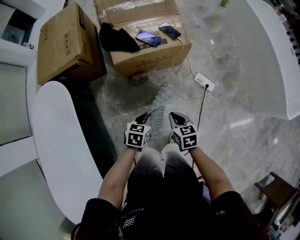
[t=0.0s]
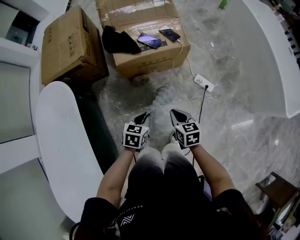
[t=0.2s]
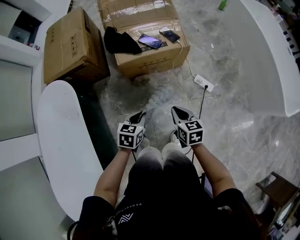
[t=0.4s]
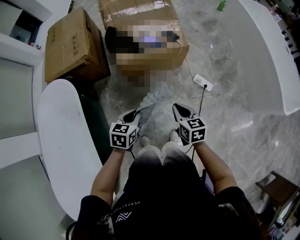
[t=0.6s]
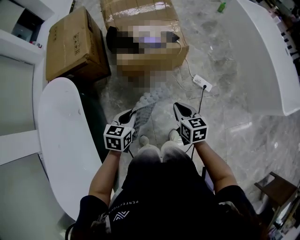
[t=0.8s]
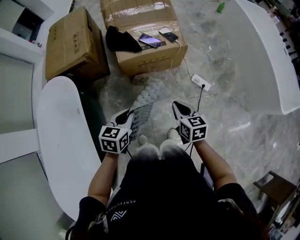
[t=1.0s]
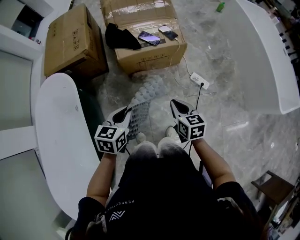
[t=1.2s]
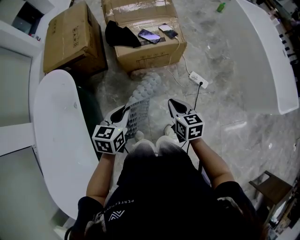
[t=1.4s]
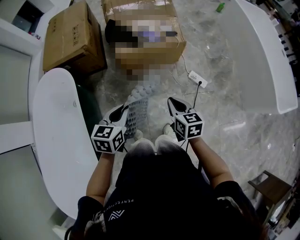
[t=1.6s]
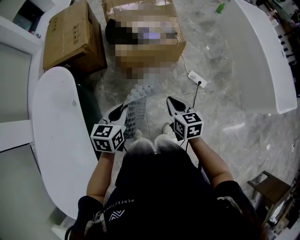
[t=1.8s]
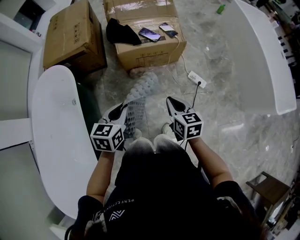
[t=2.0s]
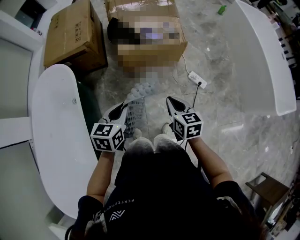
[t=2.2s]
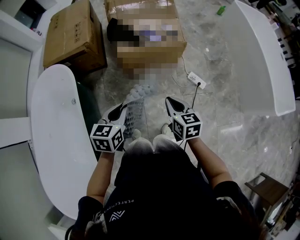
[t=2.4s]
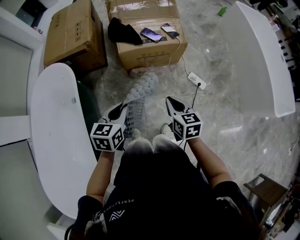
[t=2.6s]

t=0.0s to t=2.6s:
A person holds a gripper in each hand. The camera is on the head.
t=0.0s to t=1.2s: The two grippers go some 15 cm upward.
t=1.2s to t=2.6s: There are only small adjustments of the grippers.

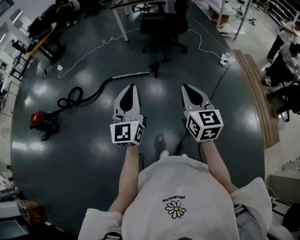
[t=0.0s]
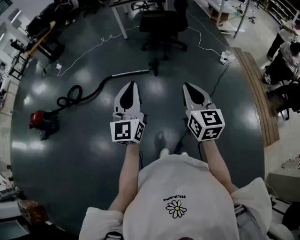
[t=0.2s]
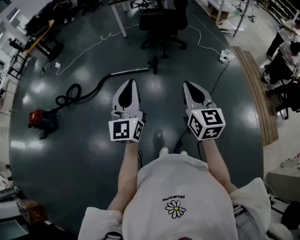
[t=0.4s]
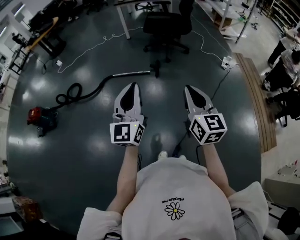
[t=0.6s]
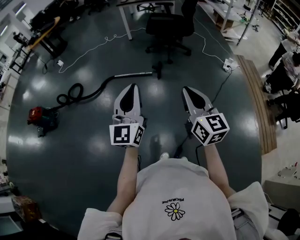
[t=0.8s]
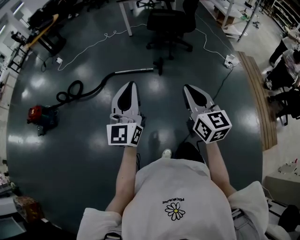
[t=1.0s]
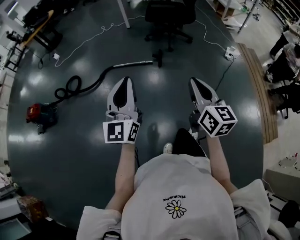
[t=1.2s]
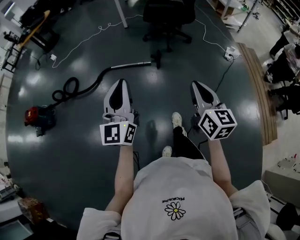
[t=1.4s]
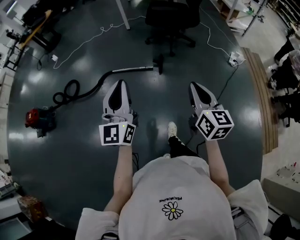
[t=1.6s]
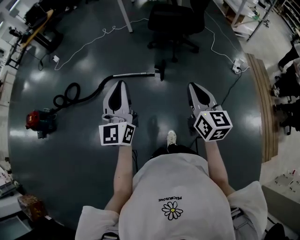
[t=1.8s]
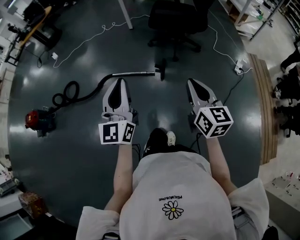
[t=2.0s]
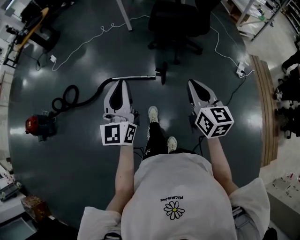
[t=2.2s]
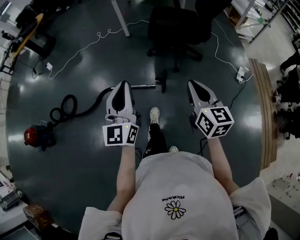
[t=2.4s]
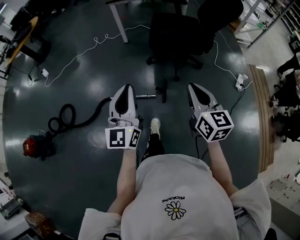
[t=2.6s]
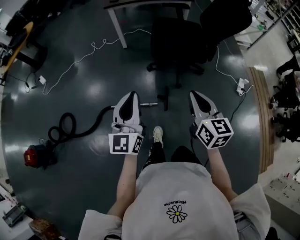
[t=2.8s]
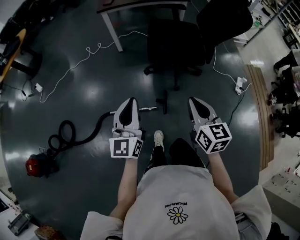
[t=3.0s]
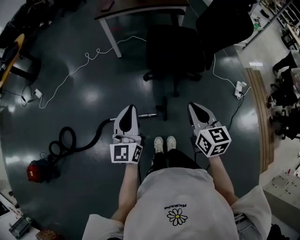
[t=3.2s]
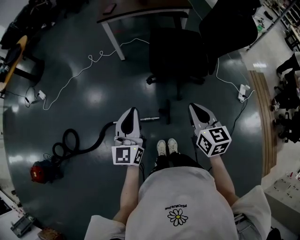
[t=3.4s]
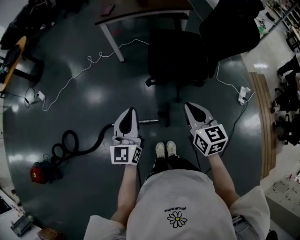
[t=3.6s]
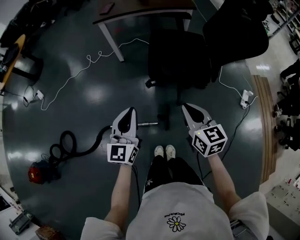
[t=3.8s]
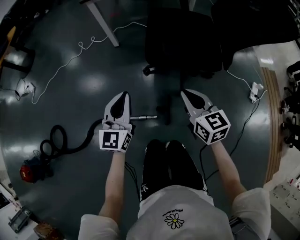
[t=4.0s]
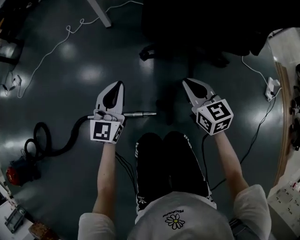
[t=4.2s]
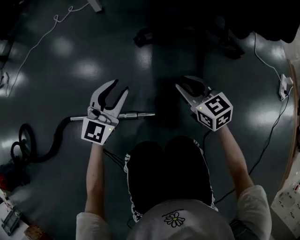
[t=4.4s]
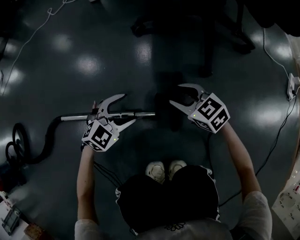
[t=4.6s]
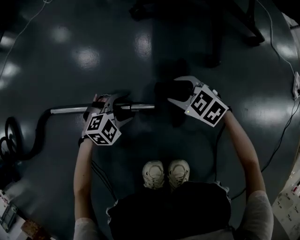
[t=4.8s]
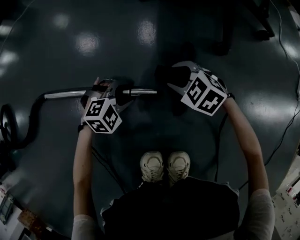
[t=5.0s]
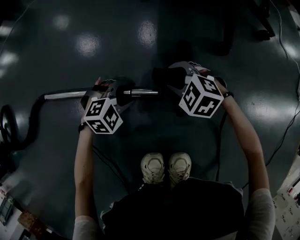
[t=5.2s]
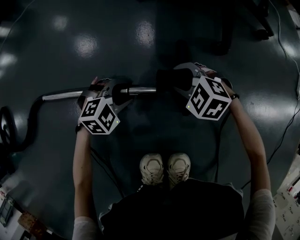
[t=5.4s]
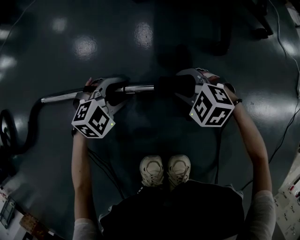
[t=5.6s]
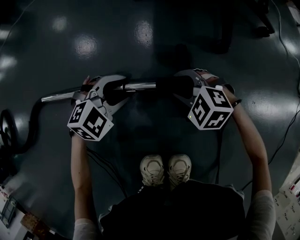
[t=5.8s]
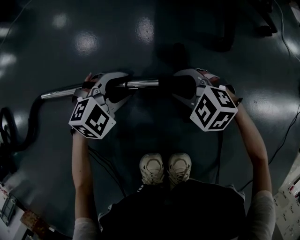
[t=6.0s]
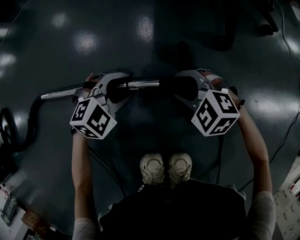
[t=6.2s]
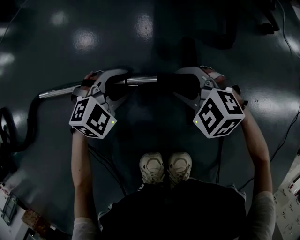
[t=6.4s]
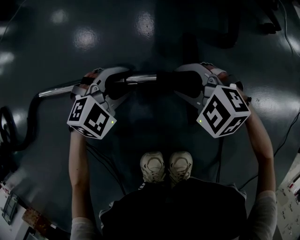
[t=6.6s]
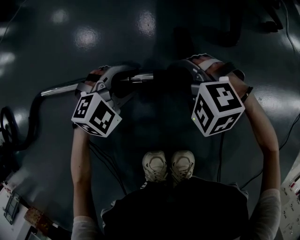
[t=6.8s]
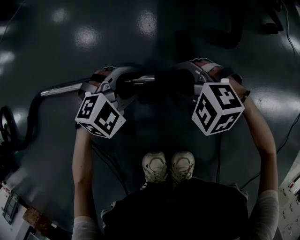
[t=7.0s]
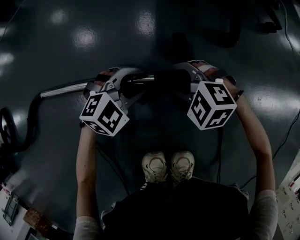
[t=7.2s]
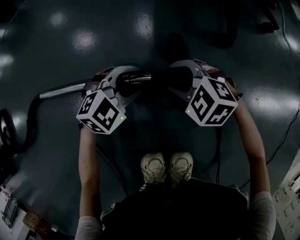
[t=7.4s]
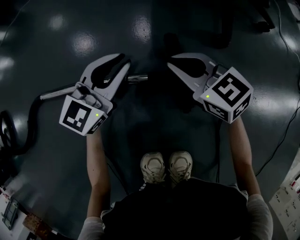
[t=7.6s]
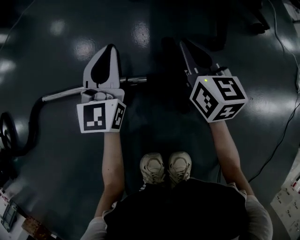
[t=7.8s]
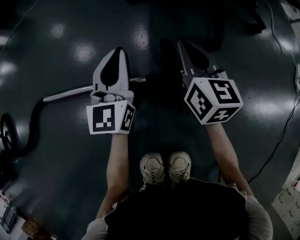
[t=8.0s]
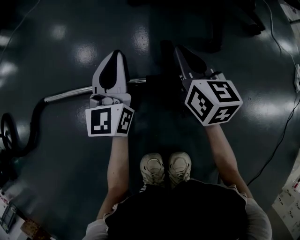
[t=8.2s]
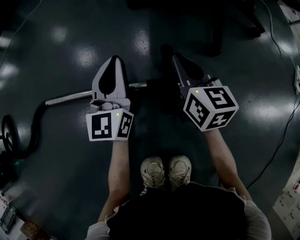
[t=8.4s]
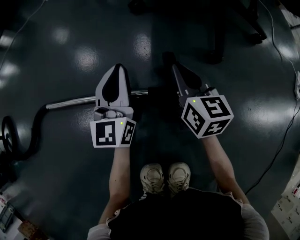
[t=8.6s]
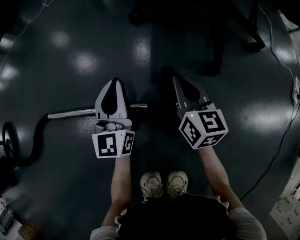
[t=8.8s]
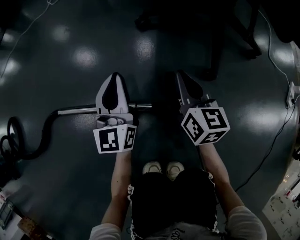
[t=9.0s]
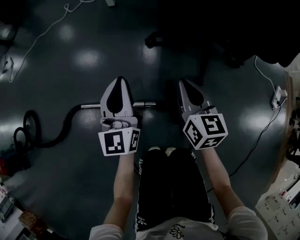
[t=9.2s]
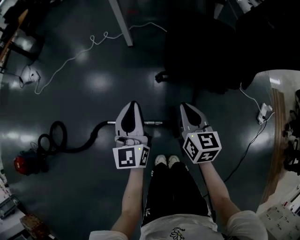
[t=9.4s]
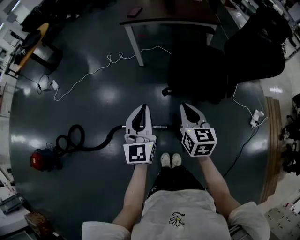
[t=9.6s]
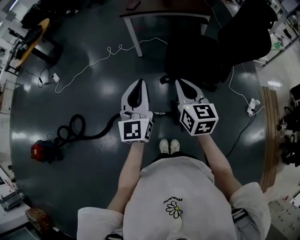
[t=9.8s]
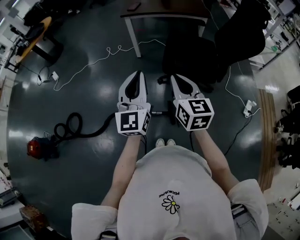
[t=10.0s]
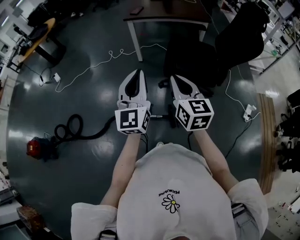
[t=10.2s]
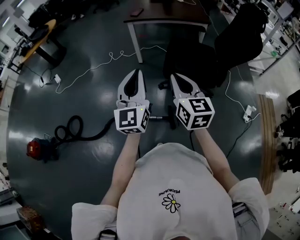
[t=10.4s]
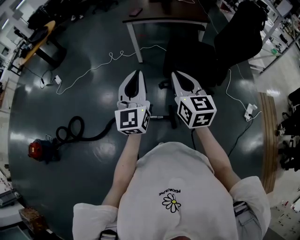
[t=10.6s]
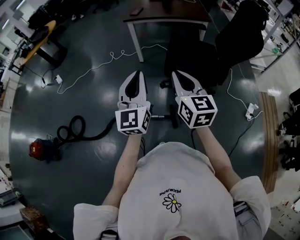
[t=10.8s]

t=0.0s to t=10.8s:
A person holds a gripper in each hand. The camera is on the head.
t=0.0s to t=1.6s: The left gripper moves forward and to the left, approximately 20 cm, while the right gripper shifts roughly 20 cm forward.
t=1.6s to t=3.0s: The pair of grippers is taken forward, some 60 cm.
t=3.0s to t=4.6s: The grippers both shift downward by roughly 80 cm. The left gripper tips its fingers downward by some 40 degrees, and opens its fingers. The right gripper swivels some 50 degrees, and opens.
t=4.6s to t=6.2s: Both grippers move downward, roughly 5 cm. The right gripper rotates approximately 40 degrees. Meanwhile the left gripper closes its fingers.
t=6.2s to t=7.8s: The right gripper changes place by approximately 15 cm, points its fingers roughly 40 degrees further upward, and closes, while the left gripper moves upward, some 15 cm, tips its fingers upward by about 50 degrees, and closes its fingers.
t=7.8s to t=9.2s: The grippers both shift upward by some 25 cm.
t=9.2s to t=10.8s: The two grippers go some 60 cm upward.

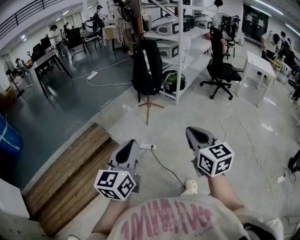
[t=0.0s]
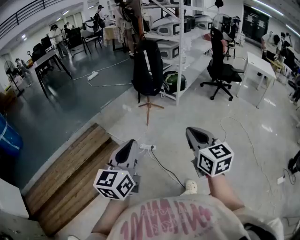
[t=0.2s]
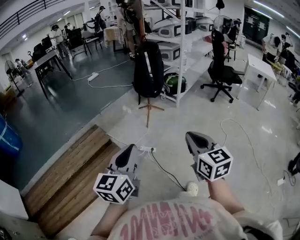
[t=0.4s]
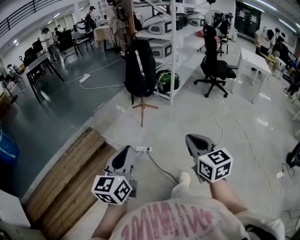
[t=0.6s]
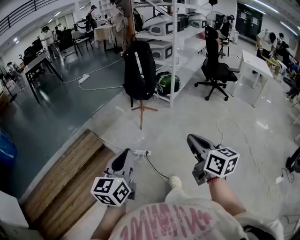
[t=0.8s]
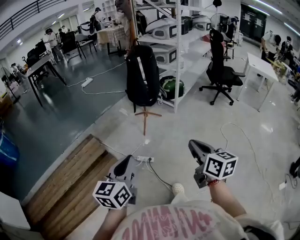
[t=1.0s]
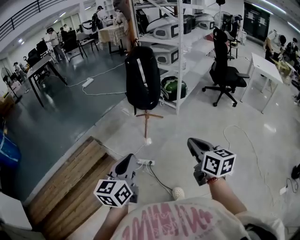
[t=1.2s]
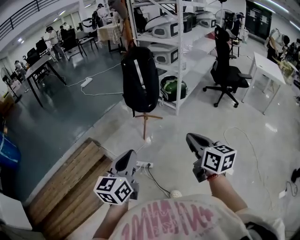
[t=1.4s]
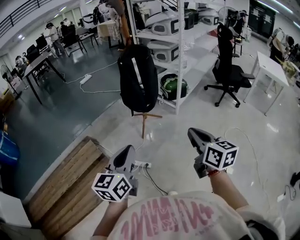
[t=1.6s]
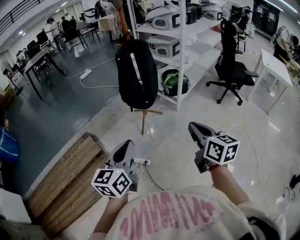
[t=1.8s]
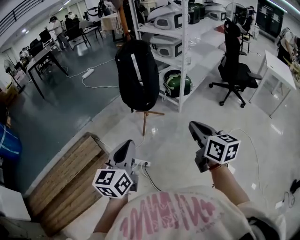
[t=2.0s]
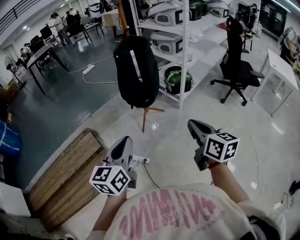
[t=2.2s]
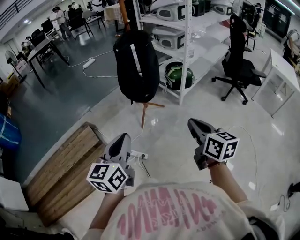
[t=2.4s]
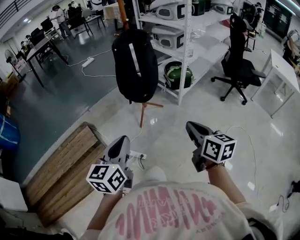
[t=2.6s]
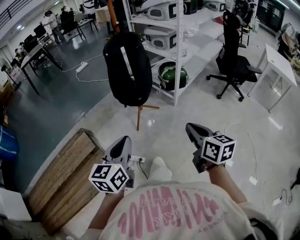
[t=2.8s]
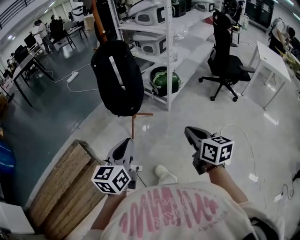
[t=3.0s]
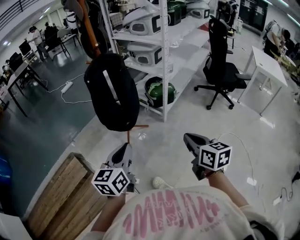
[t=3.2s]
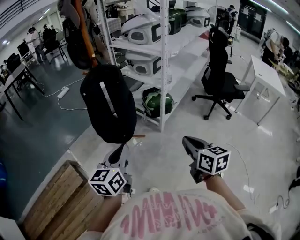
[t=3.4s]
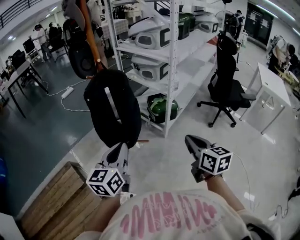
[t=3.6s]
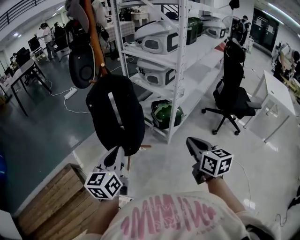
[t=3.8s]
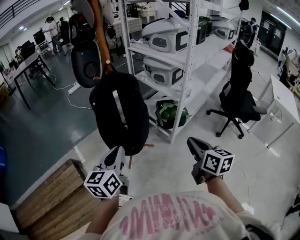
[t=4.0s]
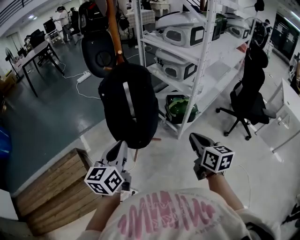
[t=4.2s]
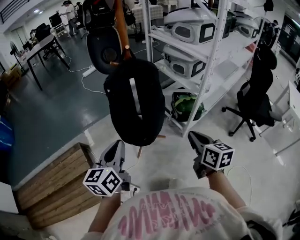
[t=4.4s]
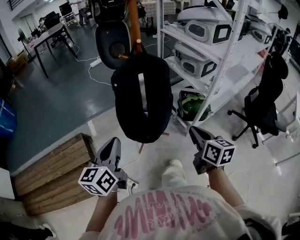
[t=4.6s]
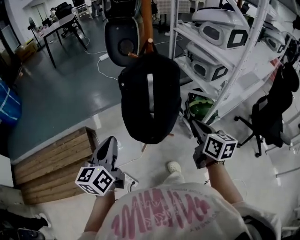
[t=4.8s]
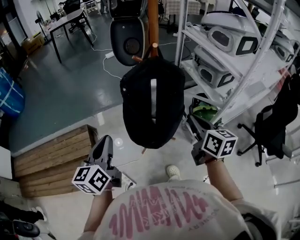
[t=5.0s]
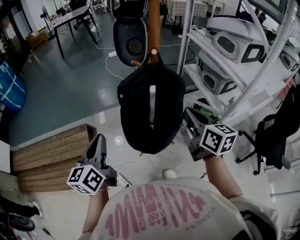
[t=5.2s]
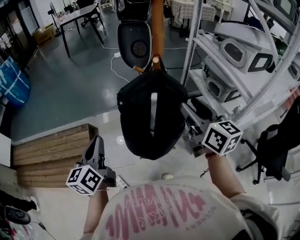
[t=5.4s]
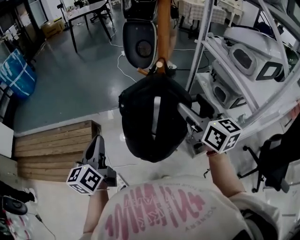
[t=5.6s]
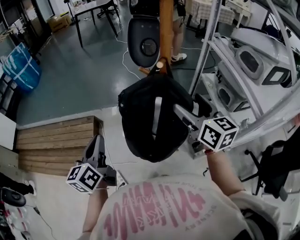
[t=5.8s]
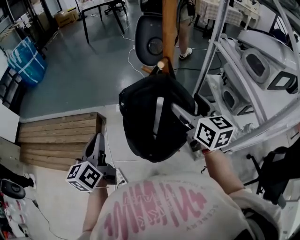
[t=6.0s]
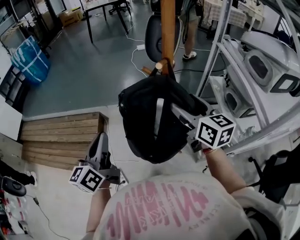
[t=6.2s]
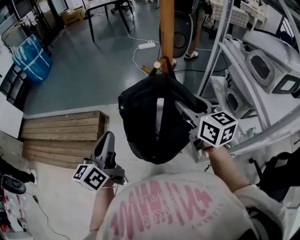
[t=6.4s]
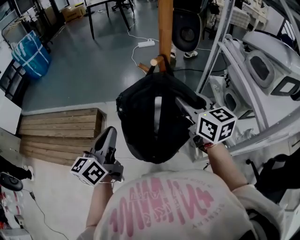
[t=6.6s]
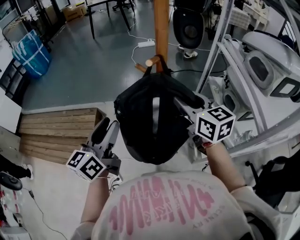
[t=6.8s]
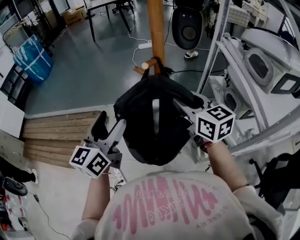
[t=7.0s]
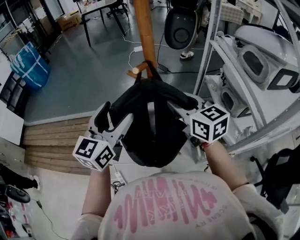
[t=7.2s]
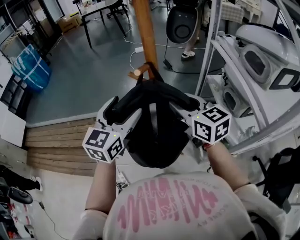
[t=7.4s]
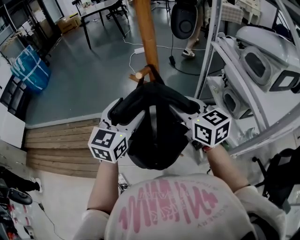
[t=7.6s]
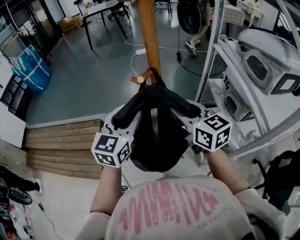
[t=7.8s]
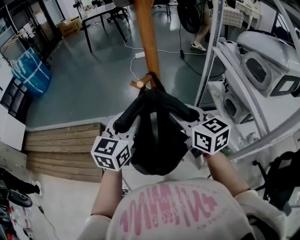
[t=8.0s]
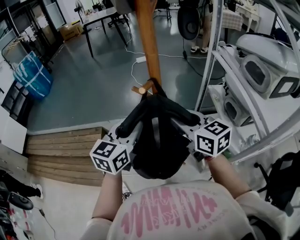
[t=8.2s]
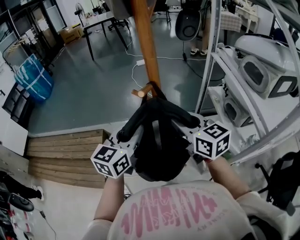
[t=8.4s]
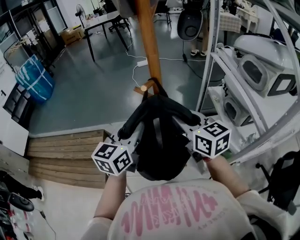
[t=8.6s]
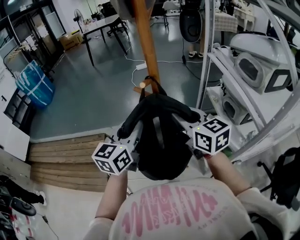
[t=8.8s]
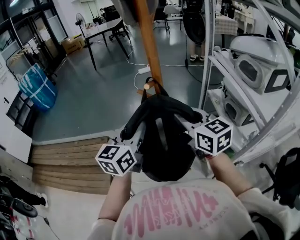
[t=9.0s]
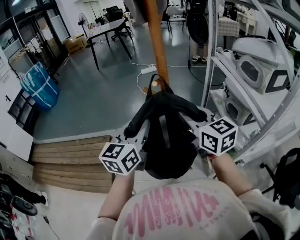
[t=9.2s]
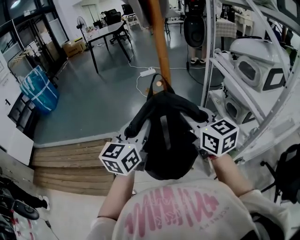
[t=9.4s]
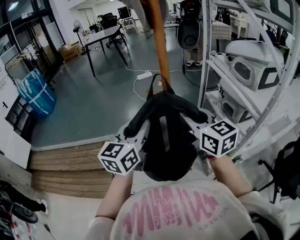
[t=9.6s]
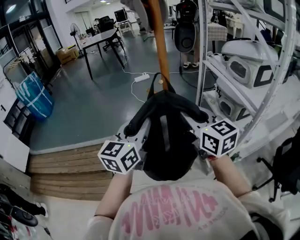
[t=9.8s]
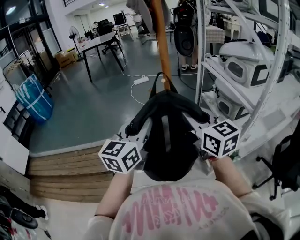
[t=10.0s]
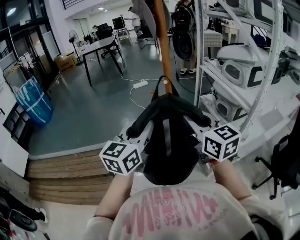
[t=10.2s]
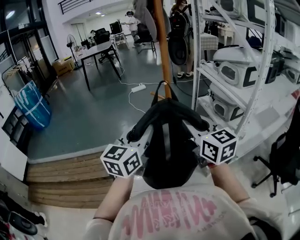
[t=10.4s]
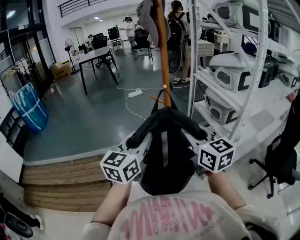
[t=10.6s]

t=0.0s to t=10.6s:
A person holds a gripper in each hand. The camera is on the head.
t=0.0s to t=1.6s: Both grippers move forward, some 30 cm.
t=1.6s to t=3.0s: The right gripper shifts approximately 20 cm forward, to the right and downward; the left gripper is displaced forward and to the right by some 20 cm.
t=3.0s to t=4.6s: The grippers both shift forward by some 30 cm. The left gripper changes its angle by roughly 20 degrees.
t=4.6s to t=6.0s: The right gripper shifts by approximately 30 cm, changes its angle by roughly 30 degrees, and opens up. The left gripper shifts by some 10 cm, and changes its angle by about 30 degrees.
t=6.0s to t=7.6s: The right gripper closes; the left gripper is displaced to the right and forward by some 20 cm, changes its angle by roughly 40 degrees, and opens.
t=7.6s to t=9.0s: The left gripper closes up.
t=9.0s to t=10.6s: The left gripper is displaced backward and upward by about 20 cm, while the right gripper travels backward by some 20 cm.
